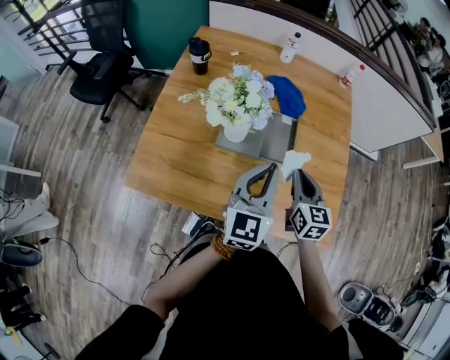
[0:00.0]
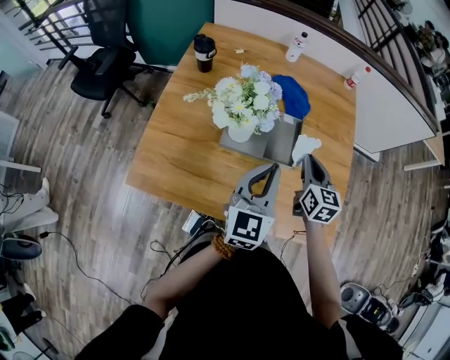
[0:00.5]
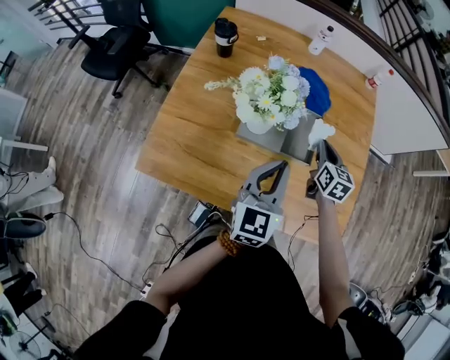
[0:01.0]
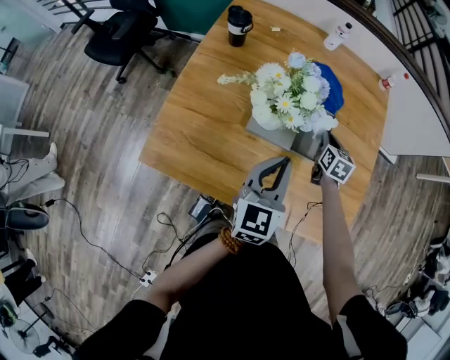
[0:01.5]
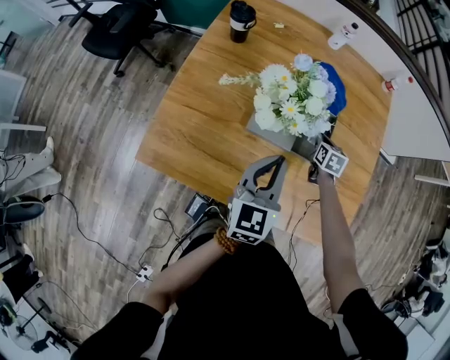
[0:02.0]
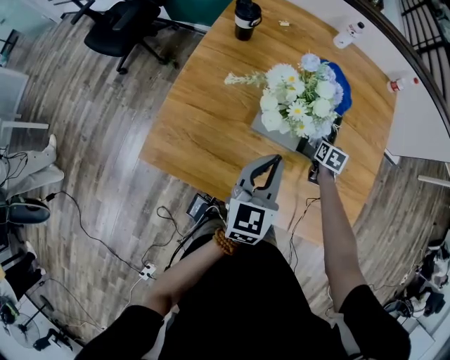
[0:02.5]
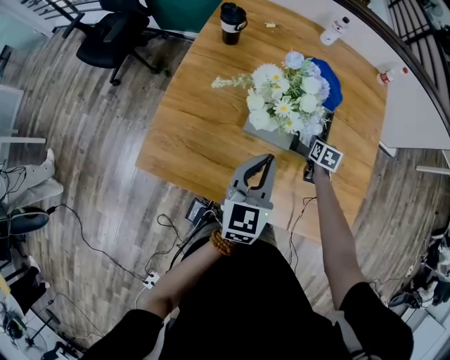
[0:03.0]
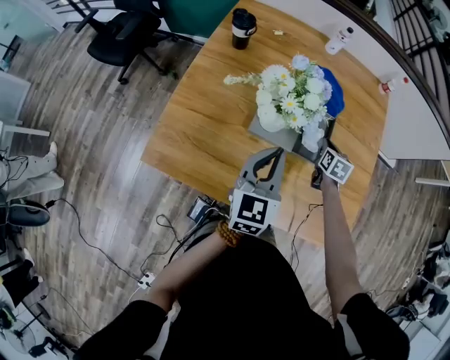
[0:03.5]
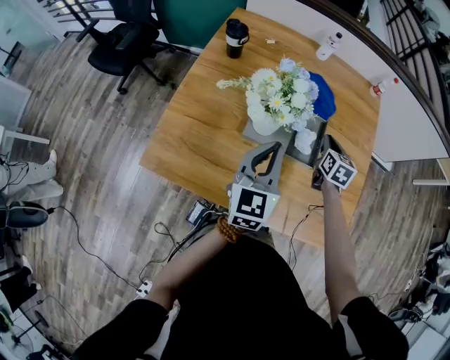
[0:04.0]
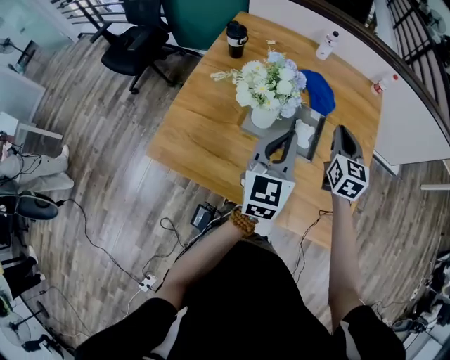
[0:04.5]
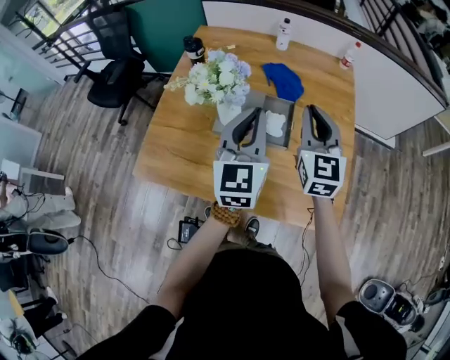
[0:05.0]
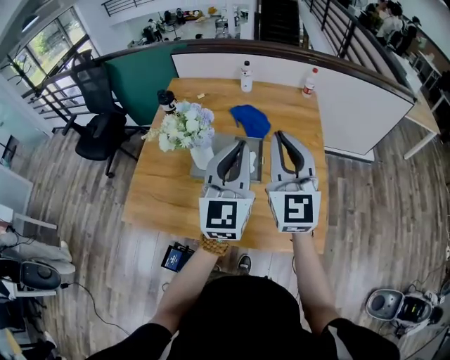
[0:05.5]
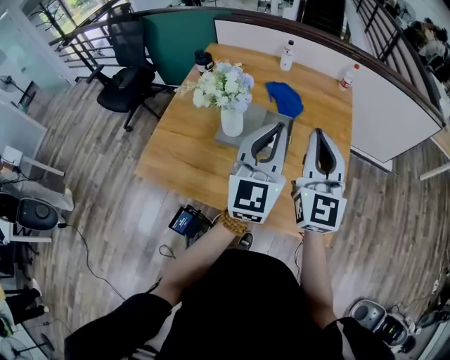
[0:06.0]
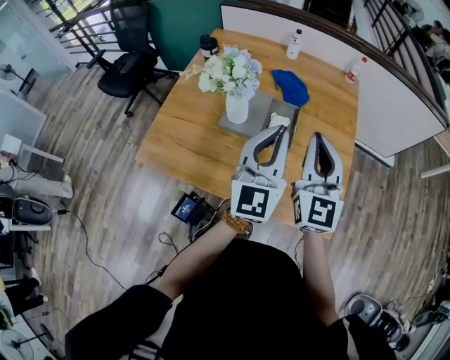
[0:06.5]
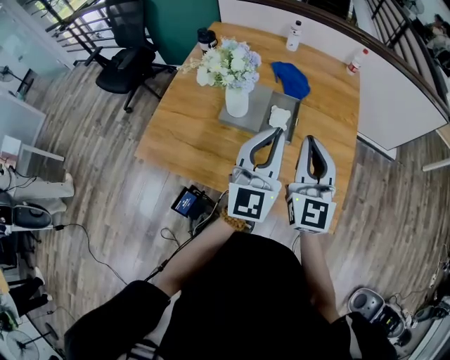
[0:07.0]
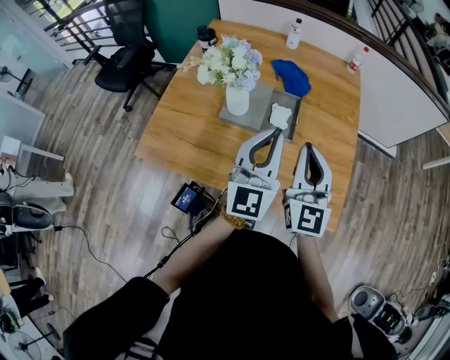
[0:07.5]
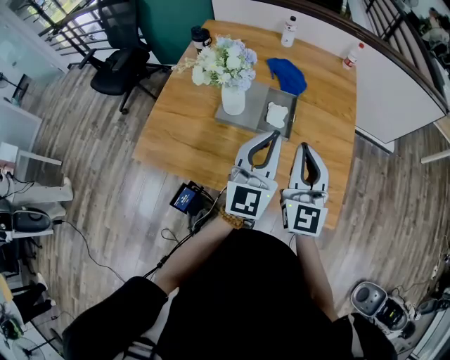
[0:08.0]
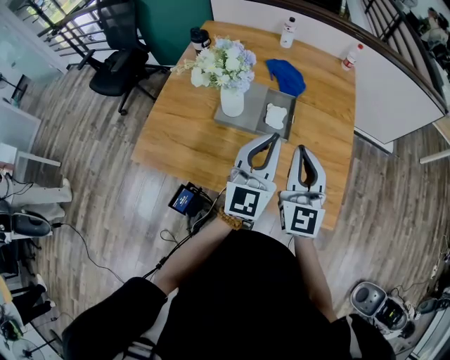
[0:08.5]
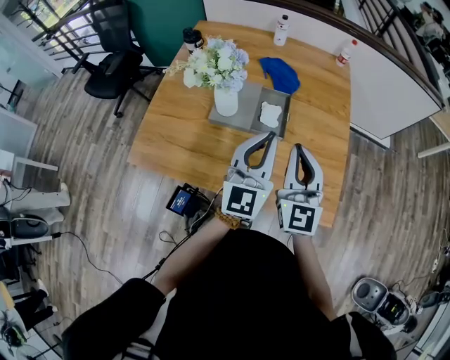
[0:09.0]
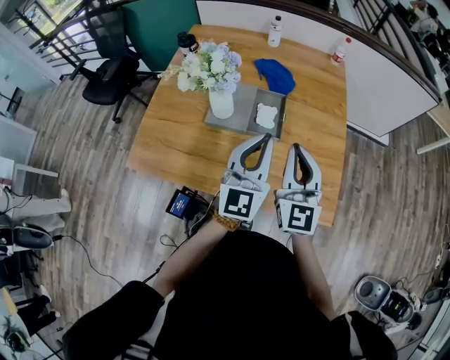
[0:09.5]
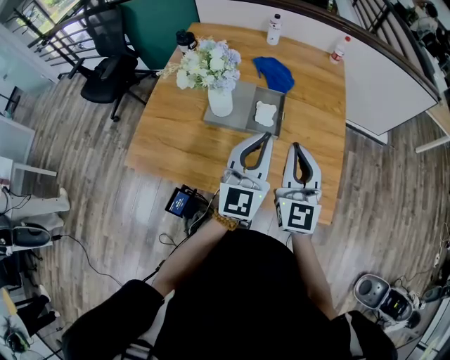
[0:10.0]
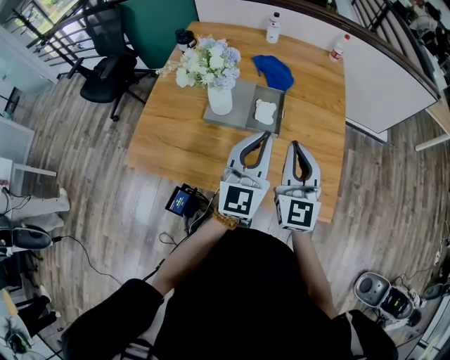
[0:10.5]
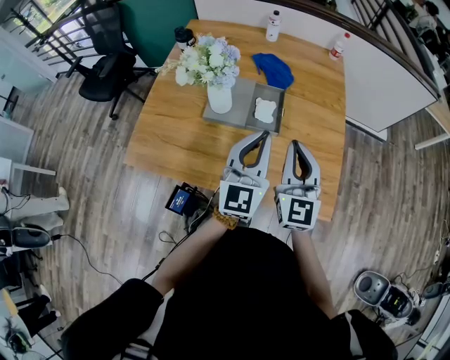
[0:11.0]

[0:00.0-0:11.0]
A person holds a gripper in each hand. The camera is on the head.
0:00.0 to 0:02.0: The right gripper goes approximately 25 cm downward and forward, and rotates approximately 30 degrees, while the left gripper shifts some 10 cm to the left and downward.
0:02.0 to 0:03.5: The grippers make only small movements.
0:03.5 to 0:05.5: The right gripper goes about 40 cm upward and backward, and tips its fingers upward by roughly 50 degrees, while the left gripper goes about 25 cm upward and to the right, and rotates roughly 20 degrees.
0:05.5 to 0:07.5: The left gripper is displaced downward and backward by approximately 10 cm, while the right gripper is displaced downward and backward by some 15 cm.
0:07.5 to 0:11.0: The grippers stay close to where they were, moving slightly.

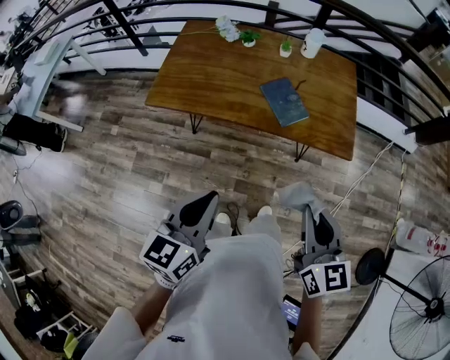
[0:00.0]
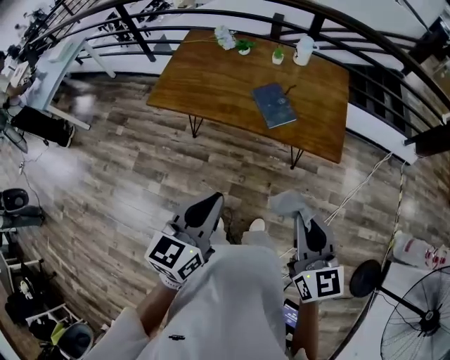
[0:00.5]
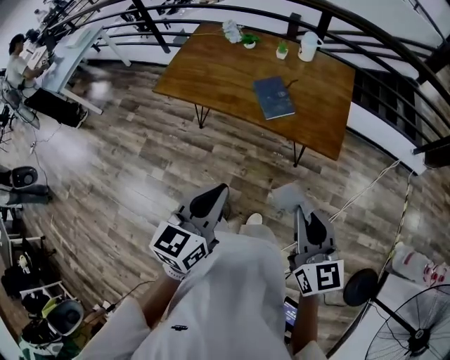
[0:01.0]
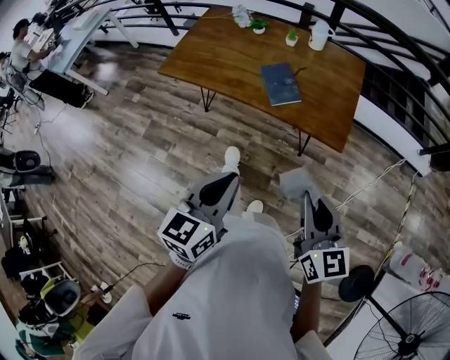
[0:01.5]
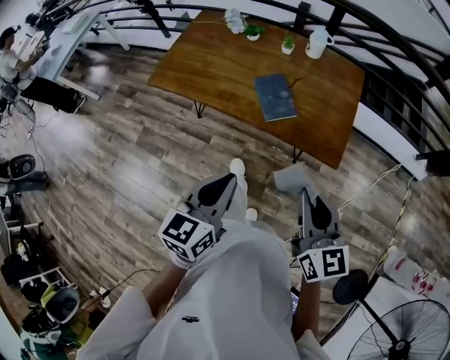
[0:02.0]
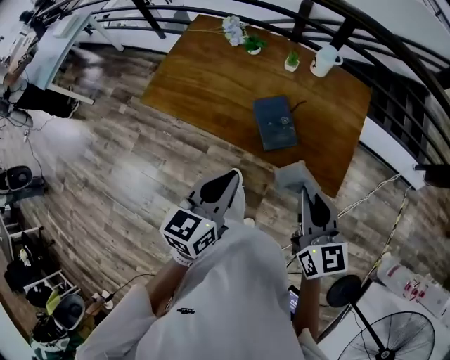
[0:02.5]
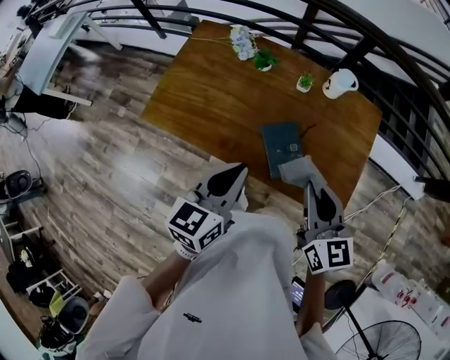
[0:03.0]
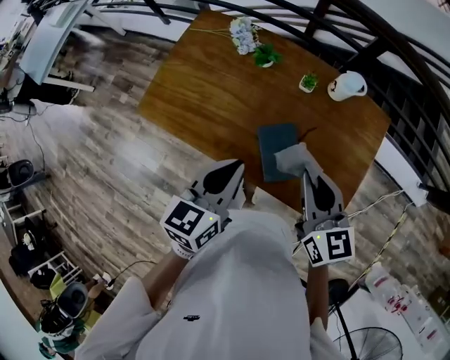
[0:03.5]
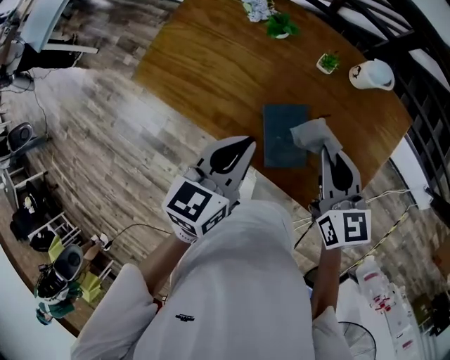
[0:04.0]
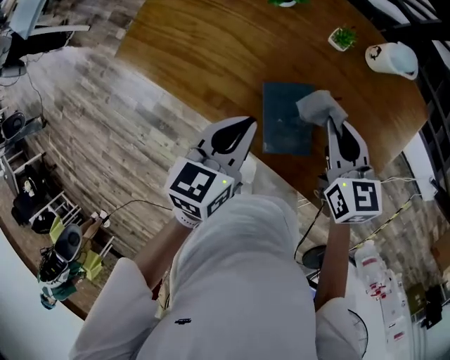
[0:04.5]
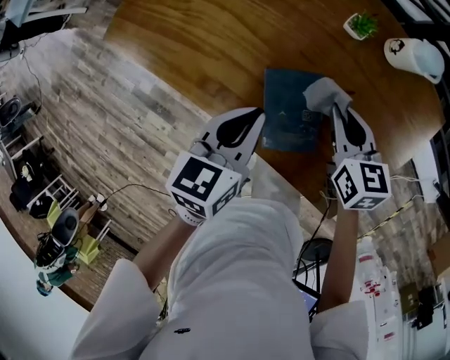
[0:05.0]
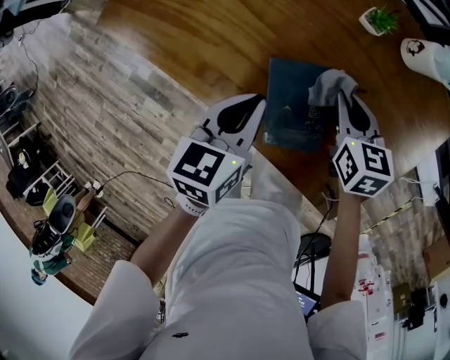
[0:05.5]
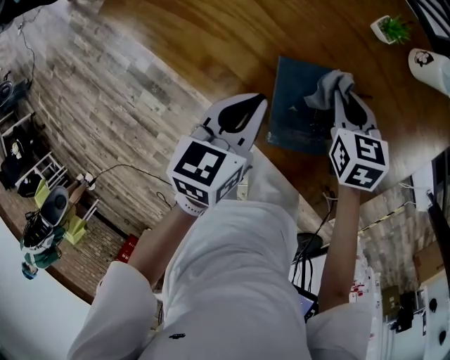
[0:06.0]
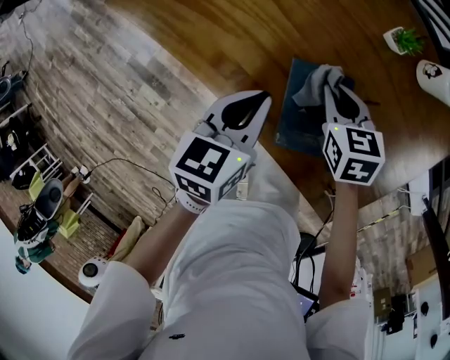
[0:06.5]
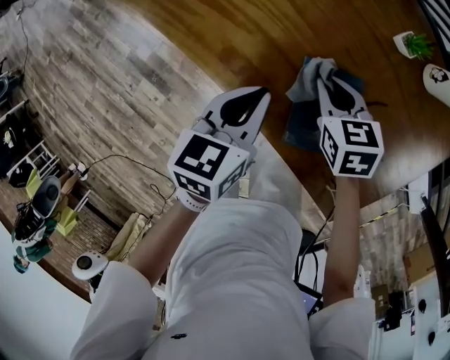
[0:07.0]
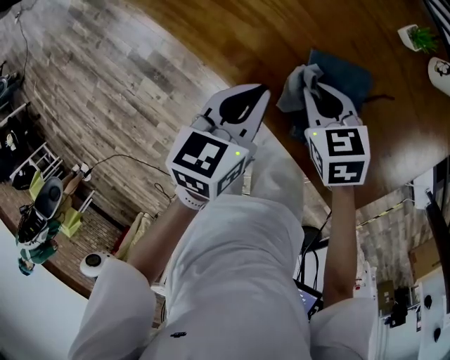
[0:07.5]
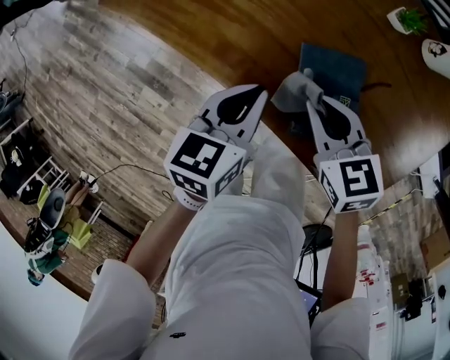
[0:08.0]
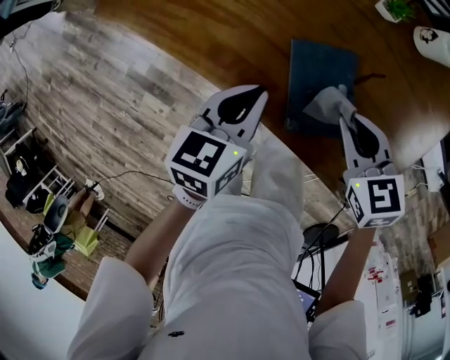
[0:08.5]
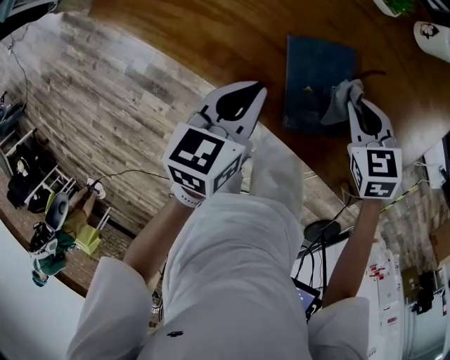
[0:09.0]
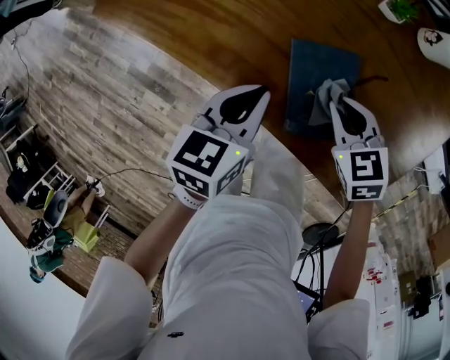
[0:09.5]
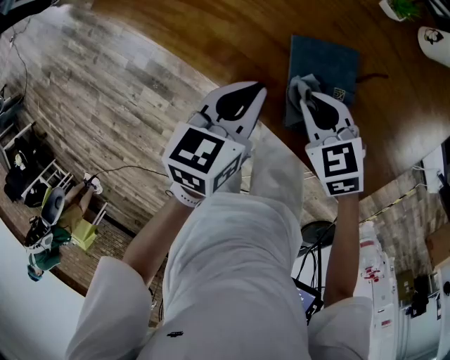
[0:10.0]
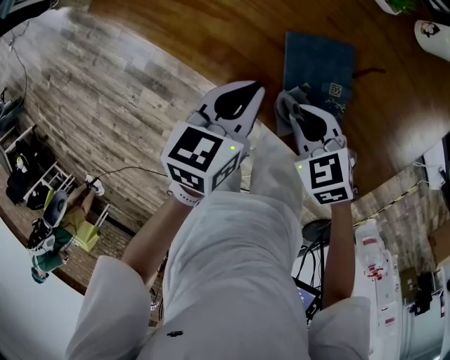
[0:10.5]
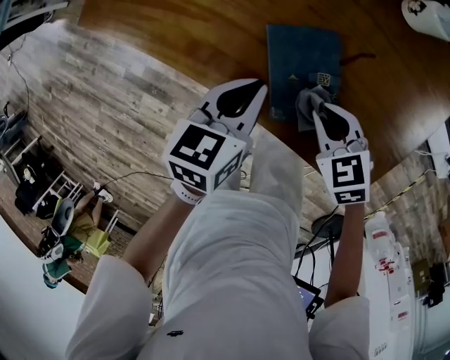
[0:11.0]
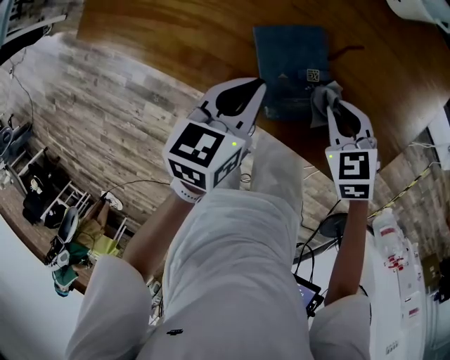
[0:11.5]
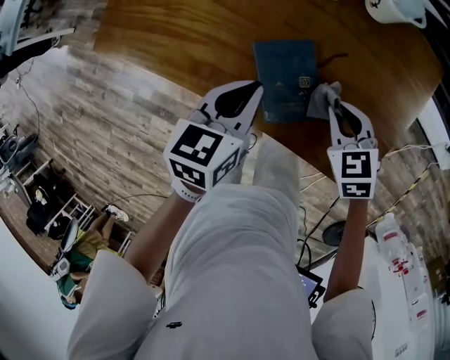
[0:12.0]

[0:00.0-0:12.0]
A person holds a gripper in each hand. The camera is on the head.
0:00.0 to 0:02.0: Both grippers move to the right, roughly 15 cm.
0:02.0 to 0:04.0: The two grippers go about 40 cm forward.
0:04.0 to 0:06.0: The two grippers go roughly 20 cm downward. The right gripper changes its angle by about 30 degrees.
0:06.0 to 0:08.0: The right gripper is displaced to the left, backward and upward by roughly 15 cm.
0:08.0 to 0:10.0: The right gripper moves approximately 15 cm to the right and comes back.
0:10.0 to 0:12.0: The right gripper shifts some 10 cm to the right, and turns by some 20 degrees; the left gripper is displaced upward by some 5 cm.

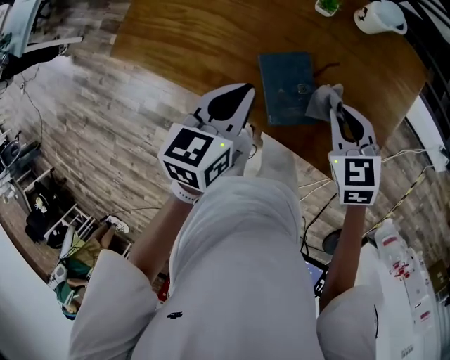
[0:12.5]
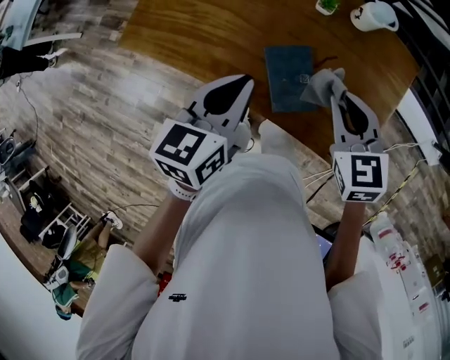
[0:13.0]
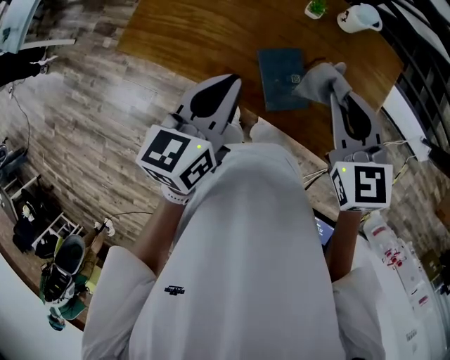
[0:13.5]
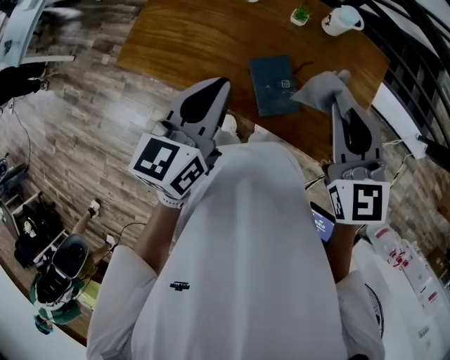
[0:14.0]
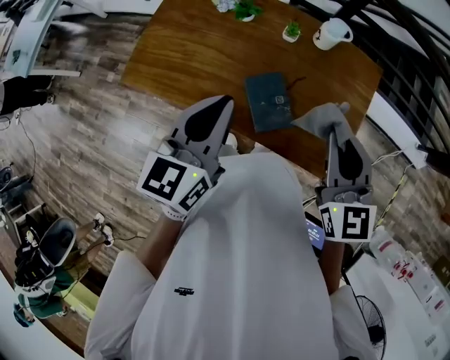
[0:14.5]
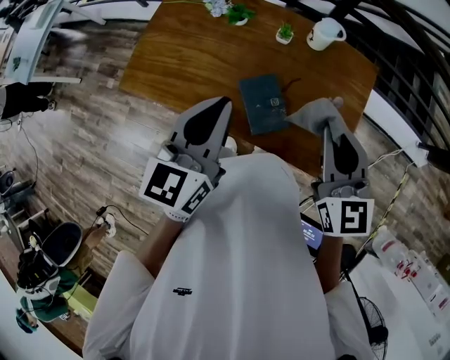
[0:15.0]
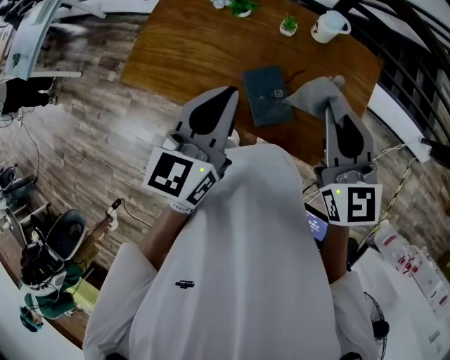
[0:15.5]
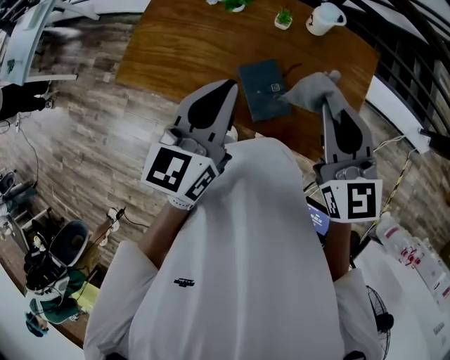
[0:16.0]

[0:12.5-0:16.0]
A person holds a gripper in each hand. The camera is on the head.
0:12.5 to 0:14.5: The grippers both shift upward by about 20 cm. The right gripper tips its fingers upward by about 30 degrees. The left gripper turns by approximately 20 degrees.
0:14.5 to 0:16.0: The grippers make only small movements.
